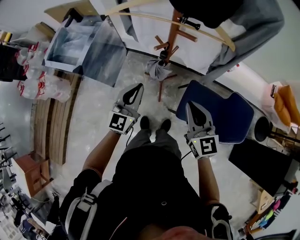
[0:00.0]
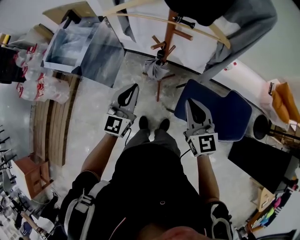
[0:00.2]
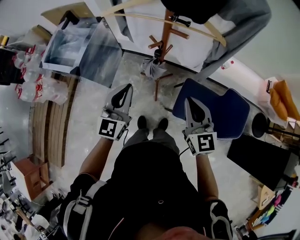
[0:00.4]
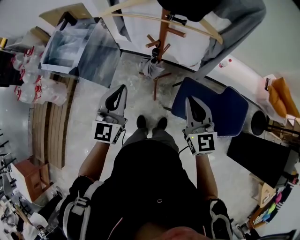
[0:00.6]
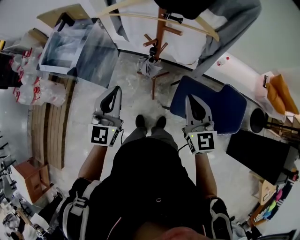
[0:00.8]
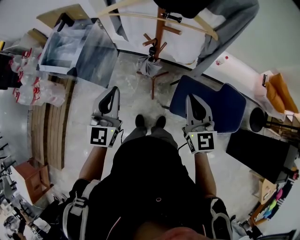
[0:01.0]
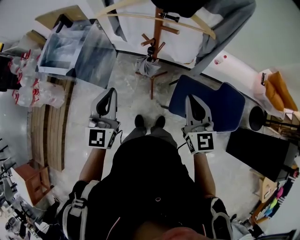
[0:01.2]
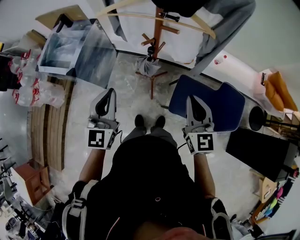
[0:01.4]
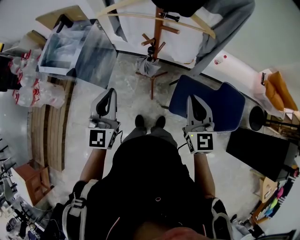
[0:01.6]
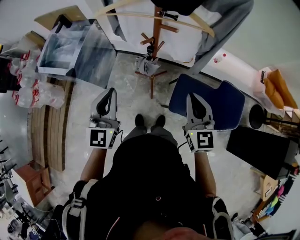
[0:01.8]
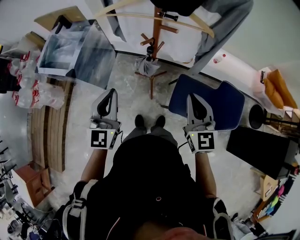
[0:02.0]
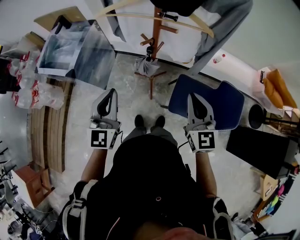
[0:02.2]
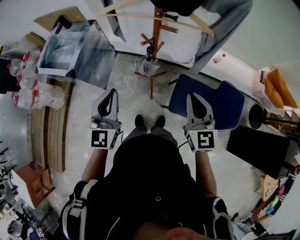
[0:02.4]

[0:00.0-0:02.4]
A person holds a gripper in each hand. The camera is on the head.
0:00.0 to 0:01.2: The right gripper ends up some 5 cm from where it was, while the left gripper moves upward and backward, some 10 cm.
0:01.2 to 0:02.4: The grippers move only a little.

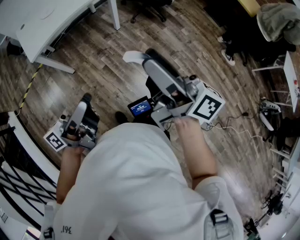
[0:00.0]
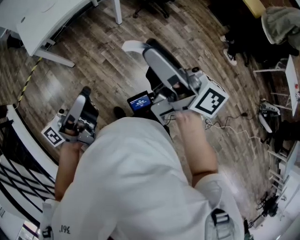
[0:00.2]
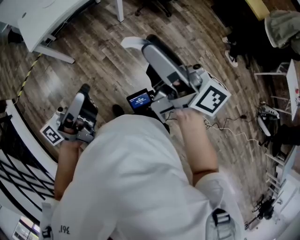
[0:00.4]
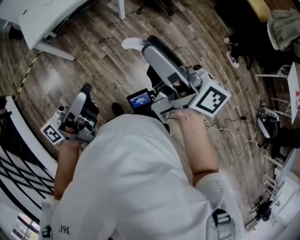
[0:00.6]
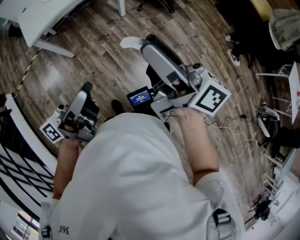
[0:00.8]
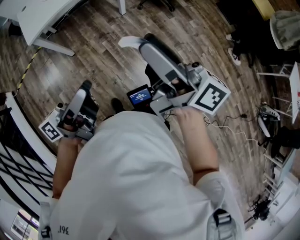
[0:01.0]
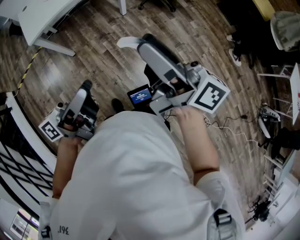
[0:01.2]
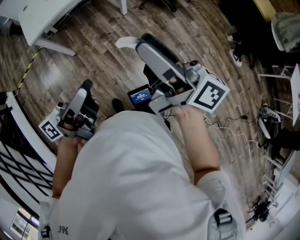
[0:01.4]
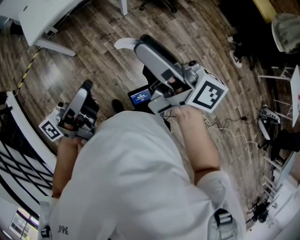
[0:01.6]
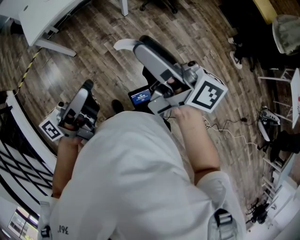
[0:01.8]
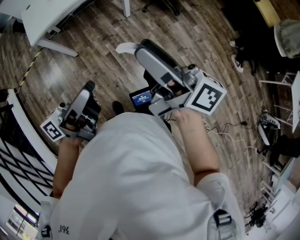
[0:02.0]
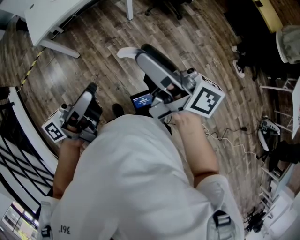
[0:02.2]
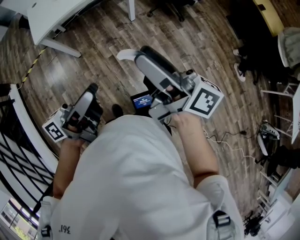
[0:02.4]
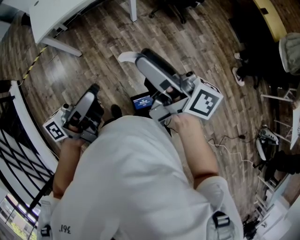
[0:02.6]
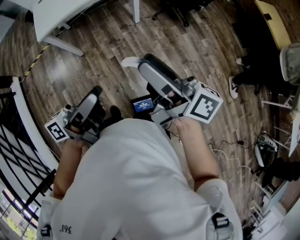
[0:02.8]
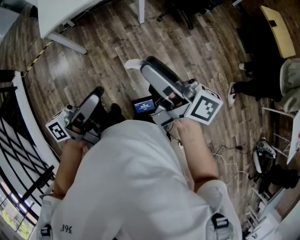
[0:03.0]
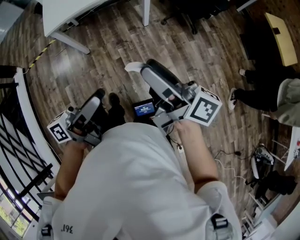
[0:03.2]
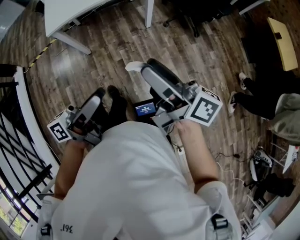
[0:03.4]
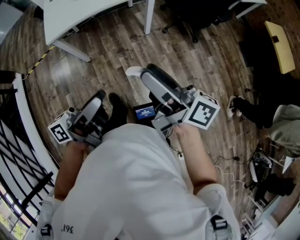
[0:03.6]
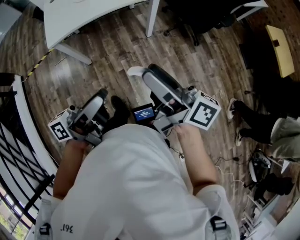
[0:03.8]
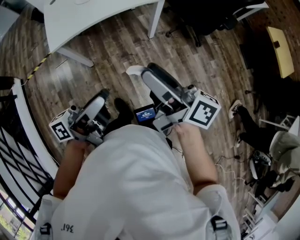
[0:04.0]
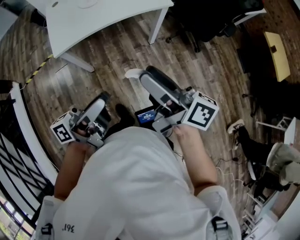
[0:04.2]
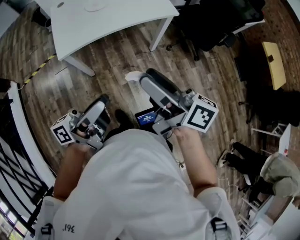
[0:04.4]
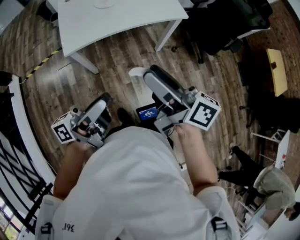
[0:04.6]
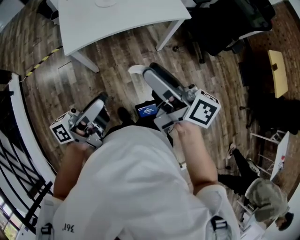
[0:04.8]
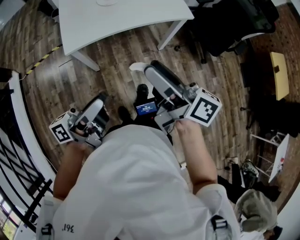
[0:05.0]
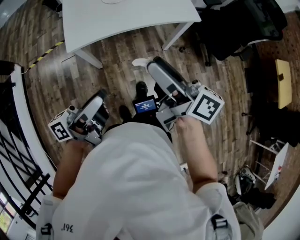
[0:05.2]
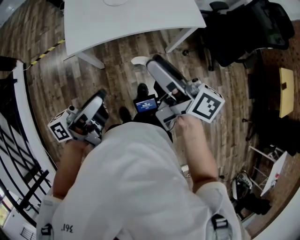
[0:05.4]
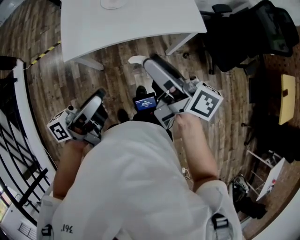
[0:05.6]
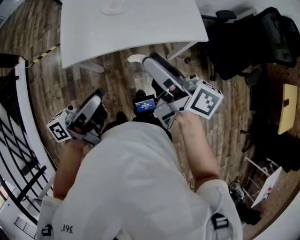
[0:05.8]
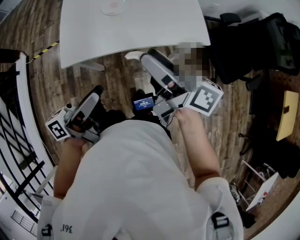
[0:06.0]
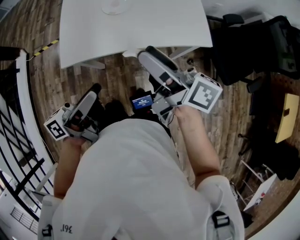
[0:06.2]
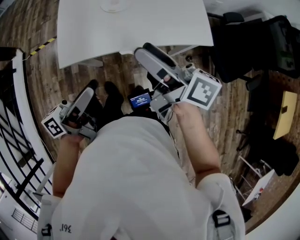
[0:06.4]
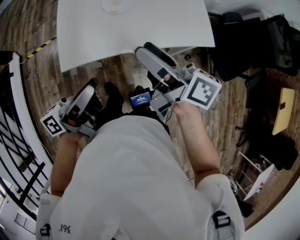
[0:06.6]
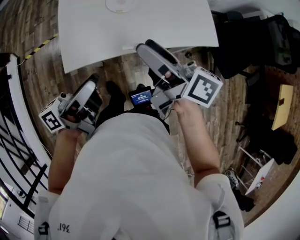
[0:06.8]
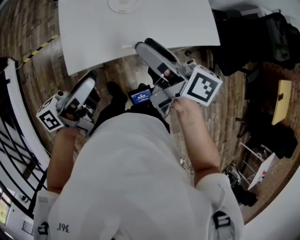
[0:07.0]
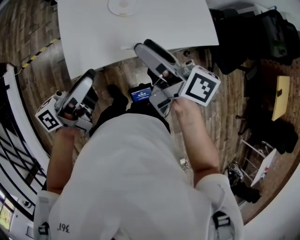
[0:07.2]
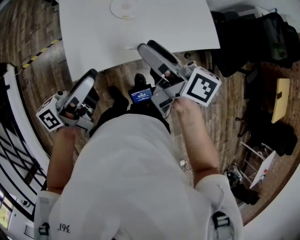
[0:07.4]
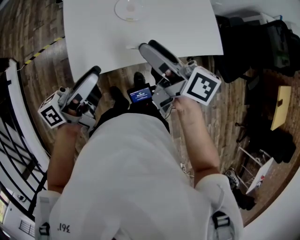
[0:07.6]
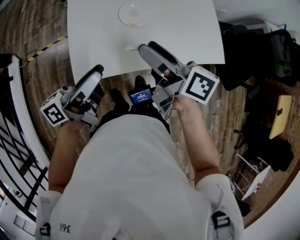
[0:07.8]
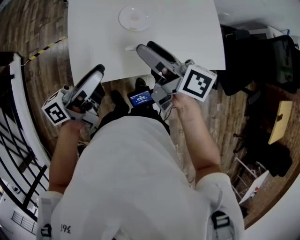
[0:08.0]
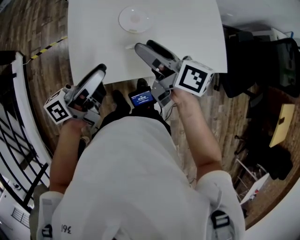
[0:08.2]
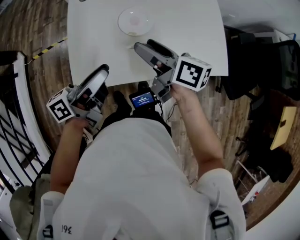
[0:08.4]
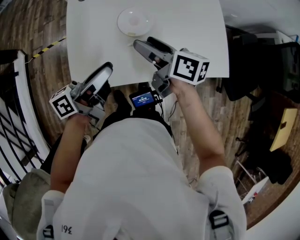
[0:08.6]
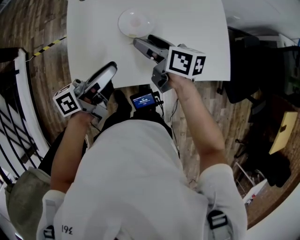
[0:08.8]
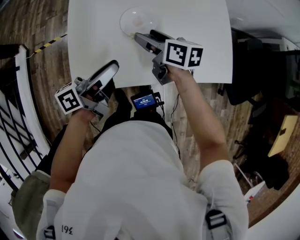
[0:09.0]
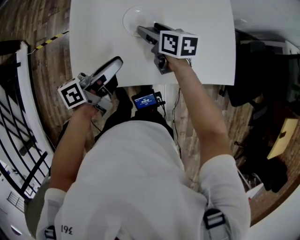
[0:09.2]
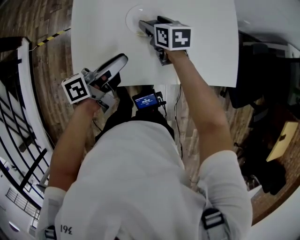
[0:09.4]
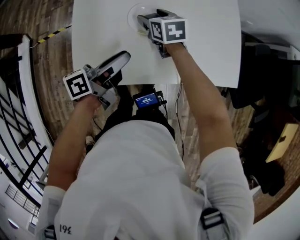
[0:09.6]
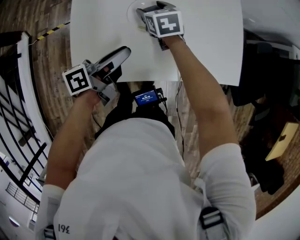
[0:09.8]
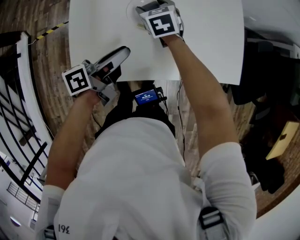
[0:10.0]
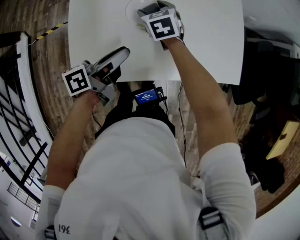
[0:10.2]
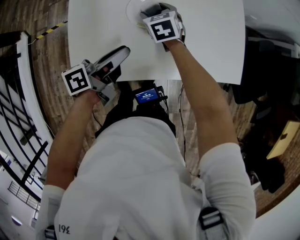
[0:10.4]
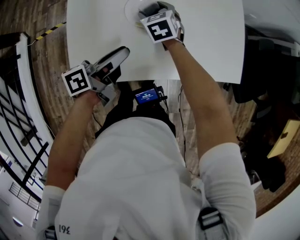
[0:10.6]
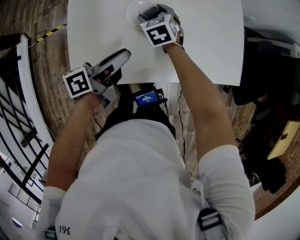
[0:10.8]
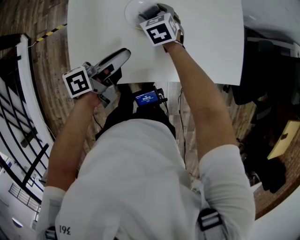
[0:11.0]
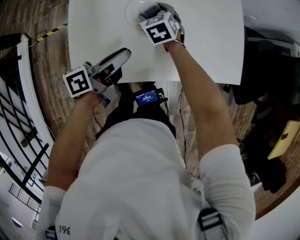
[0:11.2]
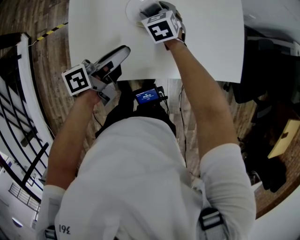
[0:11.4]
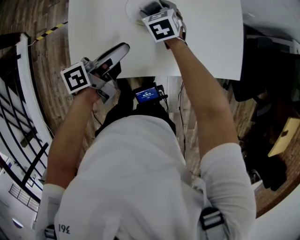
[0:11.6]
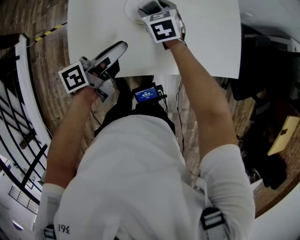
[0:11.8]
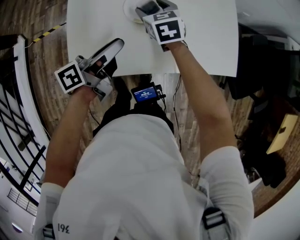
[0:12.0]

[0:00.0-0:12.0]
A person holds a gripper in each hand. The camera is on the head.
0:00.0 to 0:01.6: The grippers make only small movements.
0:01.6 to 0:03.0: The left gripper goes some 5 cm to the right. Meanwhile the right gripper changes place by about 10 cm.
0:03.0 to 0:04.4: Both grippers travel together to the left and forward, some 30 cm.
0:04.4 to 0:06.0: Both grippers travel together forward, about 25 cm.
0:06.0 to 0:07.6: The left gripper heads forward and to the left, covering approximately 20 cm, while the right gripper moves to the left and forward, roughly 20 cm.
0:07.6 to 0:09.0: The left gripper goes approximately 15 cm forward, downward and to the right. Meanwhile the right gripper is displaced forward and downward by about 25 cm, and turns by some 30 degrees.
0:09.0 to 0:10.4: The left gripper travels downward by approximately 5 cm. Meanwhile the right gripper is displaced downward and forward by some 15 cm, and rotates some 50 degrees.
0:10.4 to 0:12.0: The right gripper goes approximately 5 cm upward.

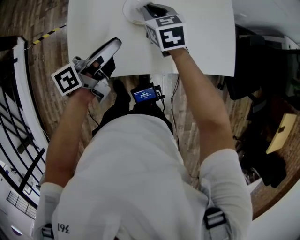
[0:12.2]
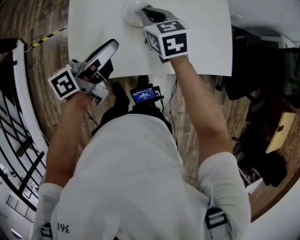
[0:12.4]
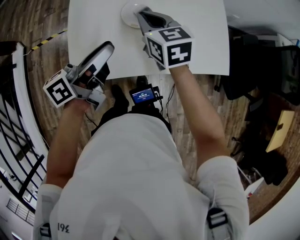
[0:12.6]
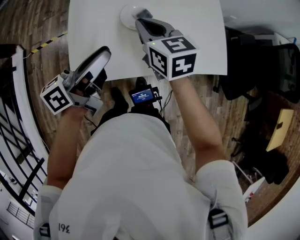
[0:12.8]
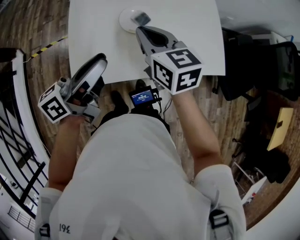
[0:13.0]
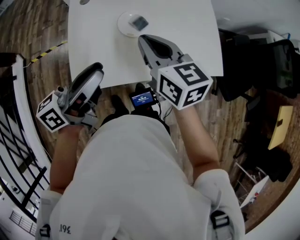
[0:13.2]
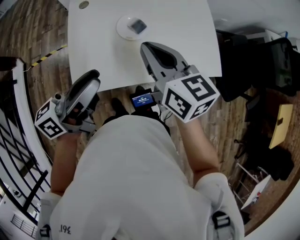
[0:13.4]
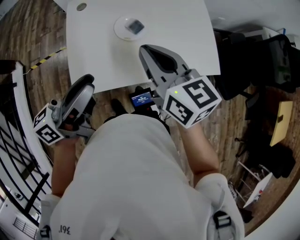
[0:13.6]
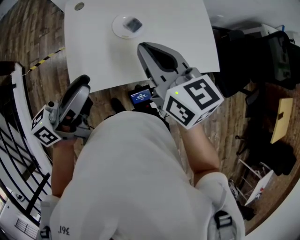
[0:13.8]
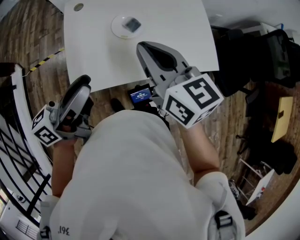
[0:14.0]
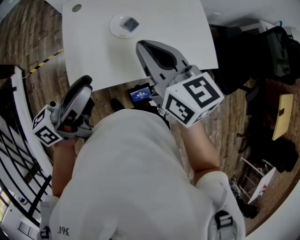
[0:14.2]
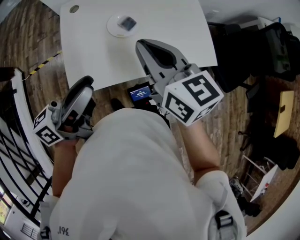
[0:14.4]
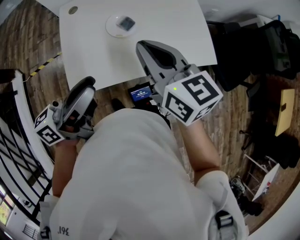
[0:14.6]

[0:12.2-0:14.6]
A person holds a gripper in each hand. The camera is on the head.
0:12.2 to 0:13.4: Both grippers travel together upward and backward, approximately 20 cm. The right gripper rotates approximately 30 degrees.
0:13.4 to 0:14.6: The grippers move only a little.

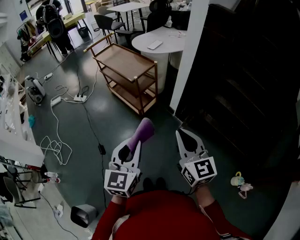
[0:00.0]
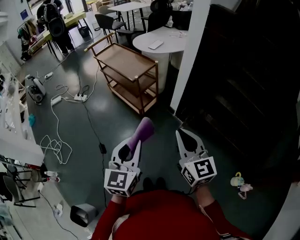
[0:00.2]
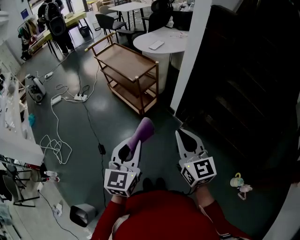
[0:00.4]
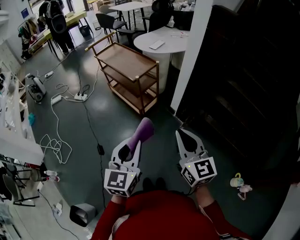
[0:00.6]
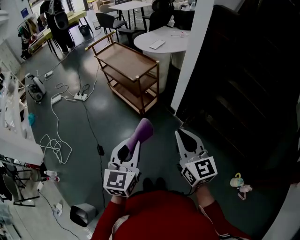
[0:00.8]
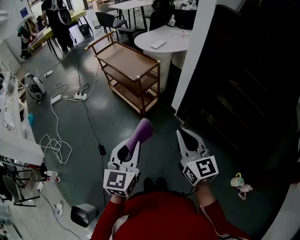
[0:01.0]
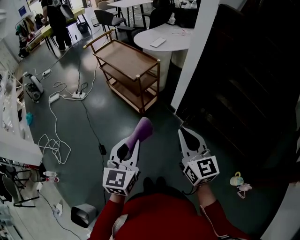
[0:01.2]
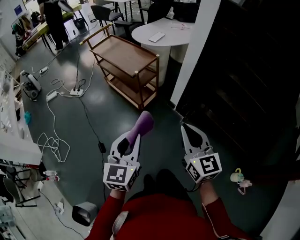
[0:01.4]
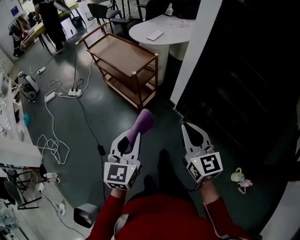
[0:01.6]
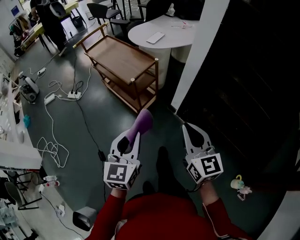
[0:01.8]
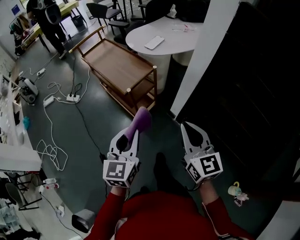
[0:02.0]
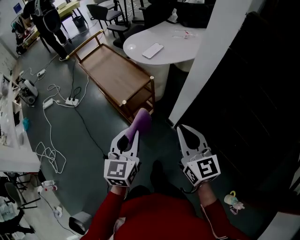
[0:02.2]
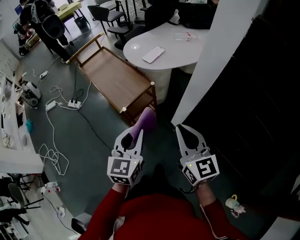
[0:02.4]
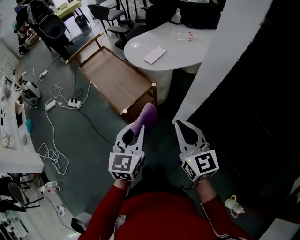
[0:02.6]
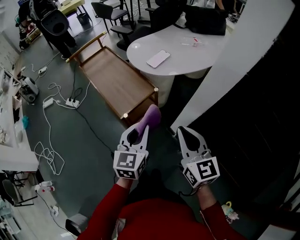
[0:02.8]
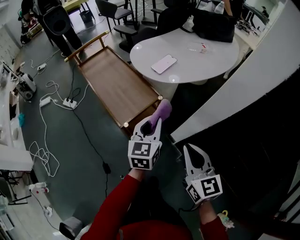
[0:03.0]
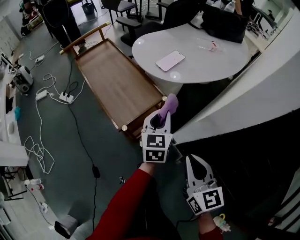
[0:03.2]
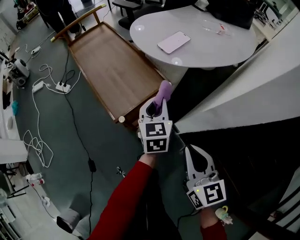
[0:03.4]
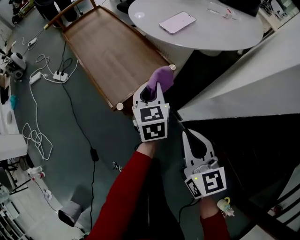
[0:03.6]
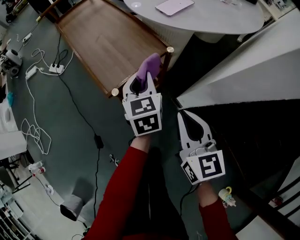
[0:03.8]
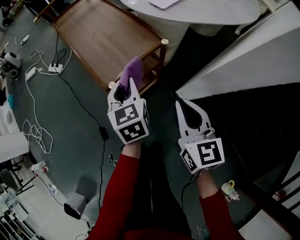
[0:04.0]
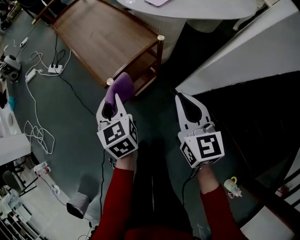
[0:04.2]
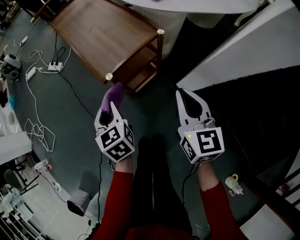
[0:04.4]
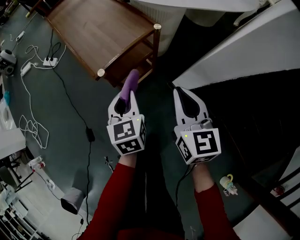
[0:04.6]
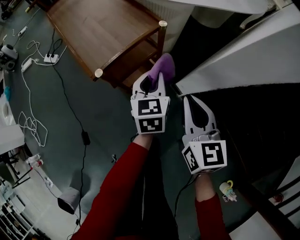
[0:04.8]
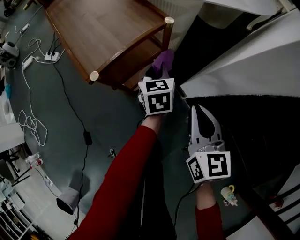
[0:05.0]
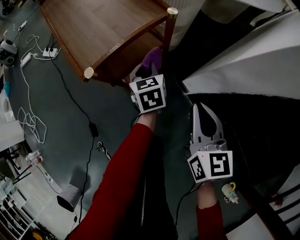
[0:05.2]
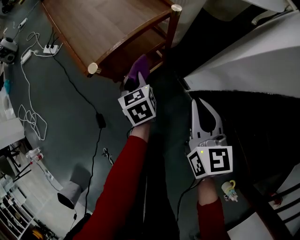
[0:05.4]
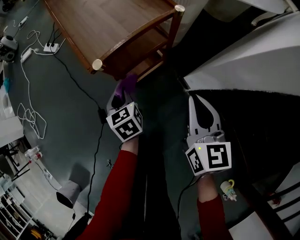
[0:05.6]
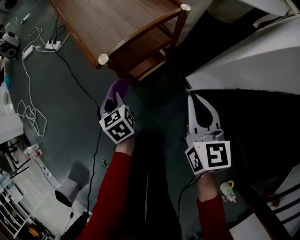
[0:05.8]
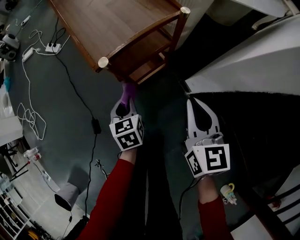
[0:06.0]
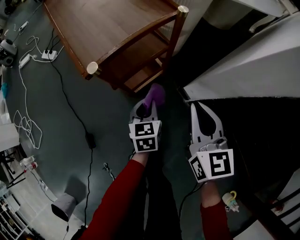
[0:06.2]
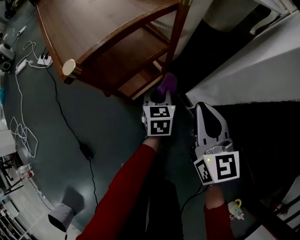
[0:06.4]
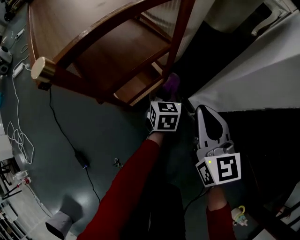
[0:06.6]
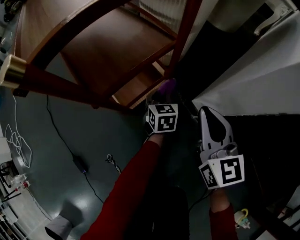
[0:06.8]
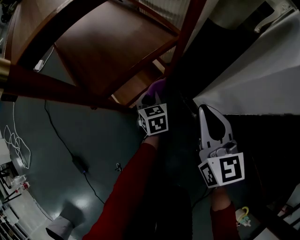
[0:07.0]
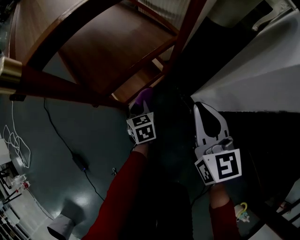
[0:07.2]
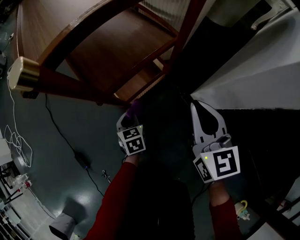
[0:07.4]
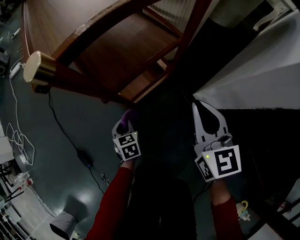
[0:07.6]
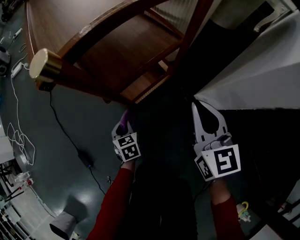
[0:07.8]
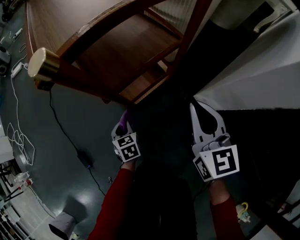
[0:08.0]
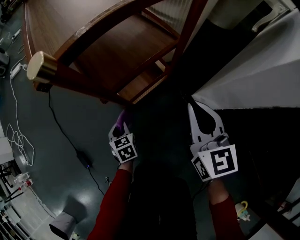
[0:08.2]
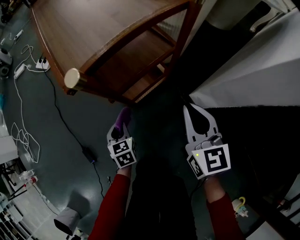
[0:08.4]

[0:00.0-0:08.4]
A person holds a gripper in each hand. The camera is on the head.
0:00.0 to 0:01.4: The left gripper moves some 5 cm.
0:01.4 to 0:02.8: Both grippers move forward, some 30 cm.
0:02.8 to 0:04.2: The left gripper moves downward and to the left, roughly 20 cm, and turns by roughly 40 degrees. The right gripper is displaced downward by approximately 15 cm.
0:04.2 to 0:05.6: The left gripper is displaced downward by approximately 20 cm, and goes to the right and returns, about 20 cm each way. Meanwhile the right gripper travels downward by about 10 cm.
0:05.6 to 0:07.0: The left gripper goes left and right, approximately 25 cm each way, reversing 2 times. Meanwhile the right gripper goes approximately 15 cm downward.
0:07.0 to 0:08.4: The right gripper ends up about 5 cm from where it was, while the left gripper is displaced to the left and backward by roughly 20 cm.
